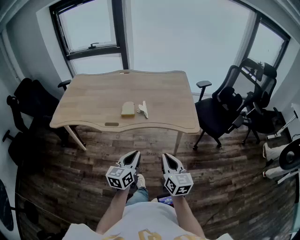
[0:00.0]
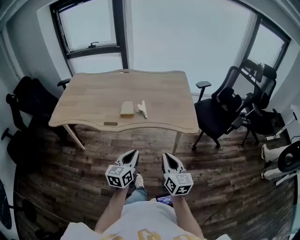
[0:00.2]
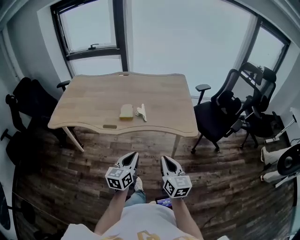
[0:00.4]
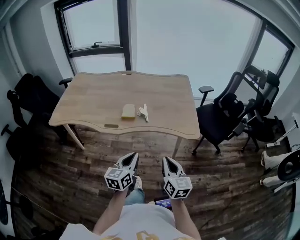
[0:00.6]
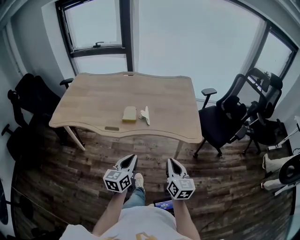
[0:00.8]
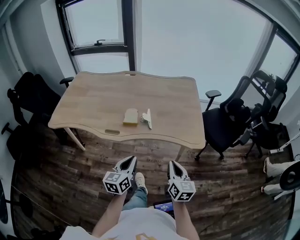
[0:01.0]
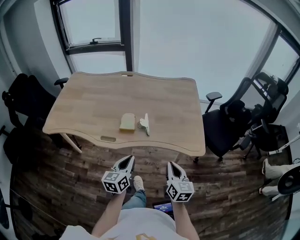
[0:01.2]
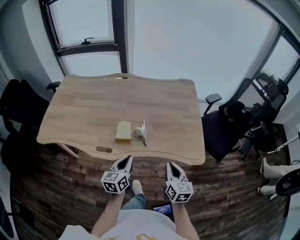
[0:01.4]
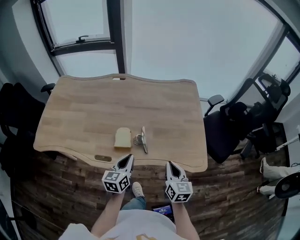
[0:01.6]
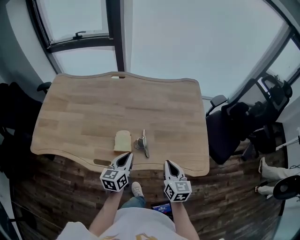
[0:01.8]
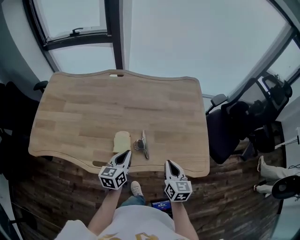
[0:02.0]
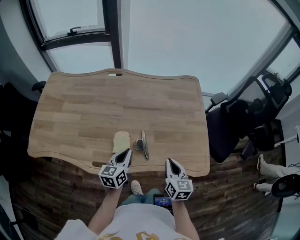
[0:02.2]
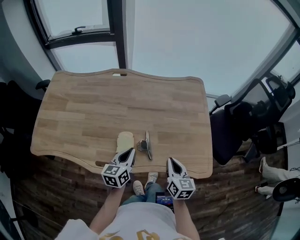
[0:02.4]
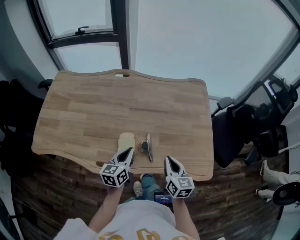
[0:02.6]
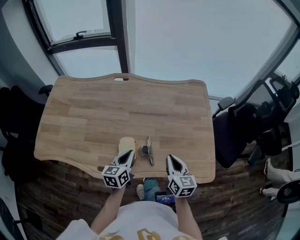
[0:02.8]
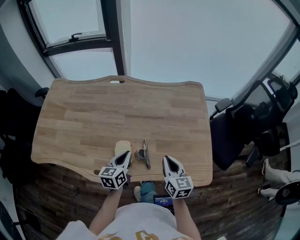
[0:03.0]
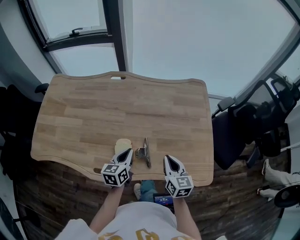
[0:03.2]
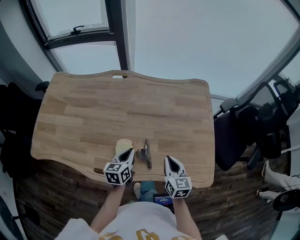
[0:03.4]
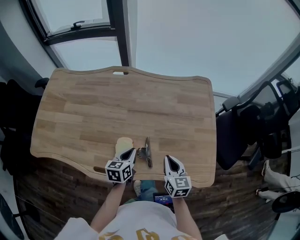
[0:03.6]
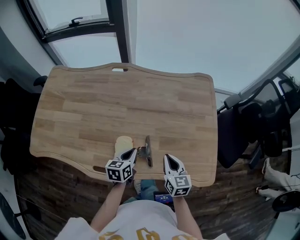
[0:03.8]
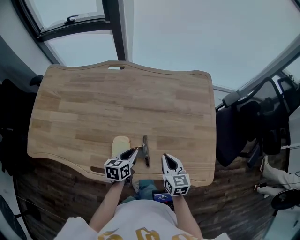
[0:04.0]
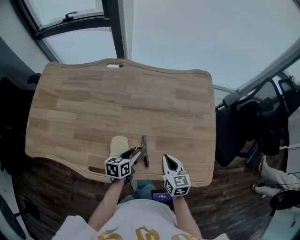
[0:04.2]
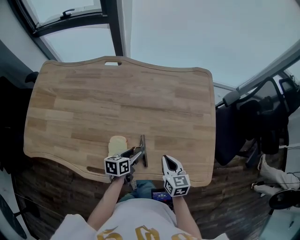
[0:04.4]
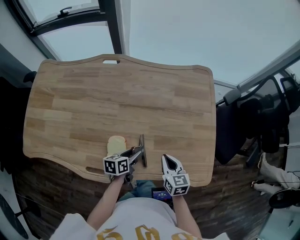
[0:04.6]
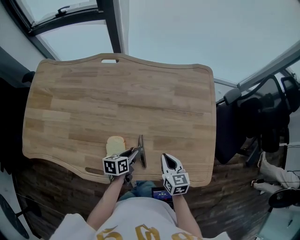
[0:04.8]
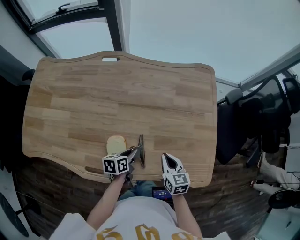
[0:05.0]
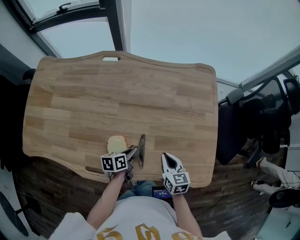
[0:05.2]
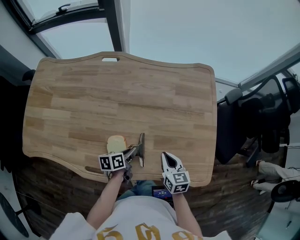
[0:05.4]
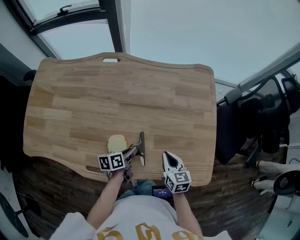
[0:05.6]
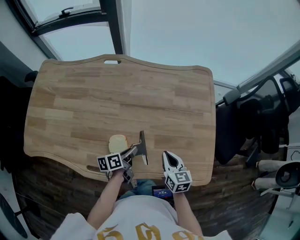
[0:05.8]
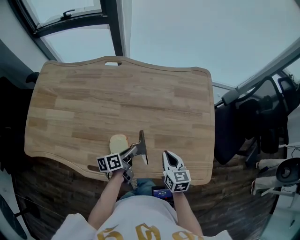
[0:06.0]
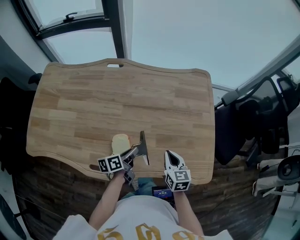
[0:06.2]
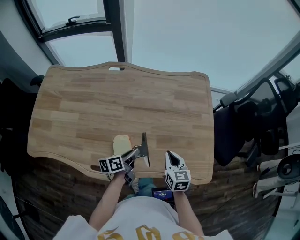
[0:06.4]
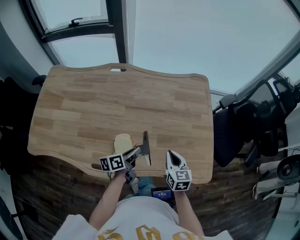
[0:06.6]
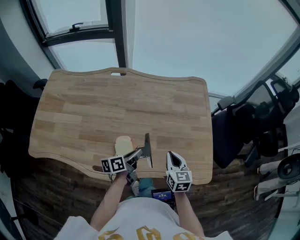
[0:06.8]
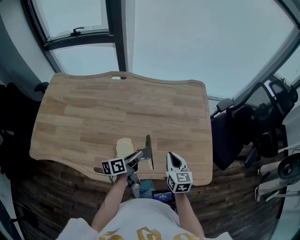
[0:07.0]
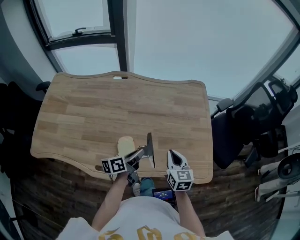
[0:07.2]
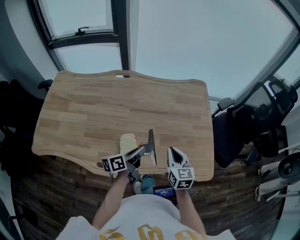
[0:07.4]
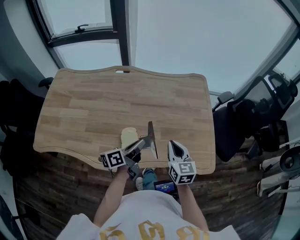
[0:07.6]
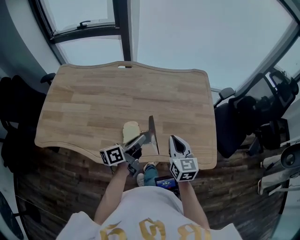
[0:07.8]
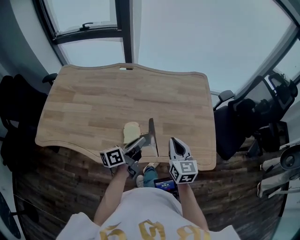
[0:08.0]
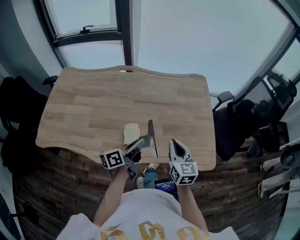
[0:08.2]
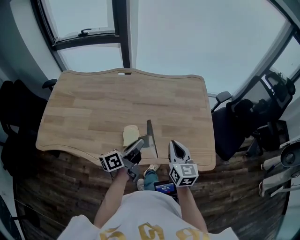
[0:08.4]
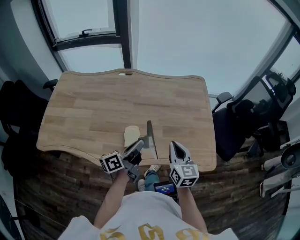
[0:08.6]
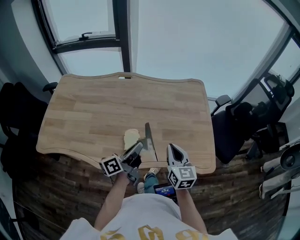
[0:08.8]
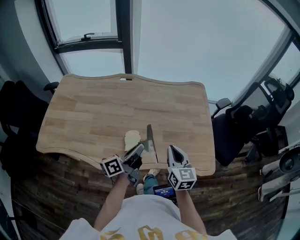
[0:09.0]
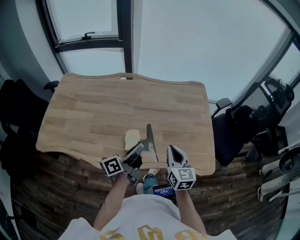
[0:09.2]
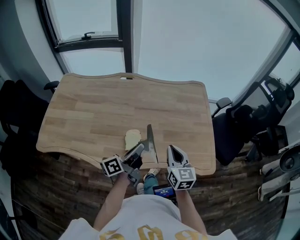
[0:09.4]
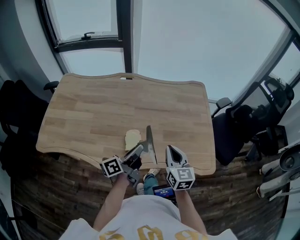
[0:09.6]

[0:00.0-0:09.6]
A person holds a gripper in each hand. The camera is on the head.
0.0 to 1.6 s: Both grippers move forward, about 30 cm.
1.6 to 3.2 s: The two grippers go about 15 cm forward.
3.2 to 4.8 s: The two grippers go roughly 10 cm downward. The left gripper changes its angle by roughly 30 degrees, and opens.
4.8 to 6.4 s: The left gripper goes roughly 5 cm upward, and changes its angle by approximately 20 degrees.
6.4 to 8.0 s: The grippers both shift upward and backward by roughly 15 cm. The left gripper changes its angle by roughly 20 degrees.
8.0 to 9.6 s: The grippers move only a little.

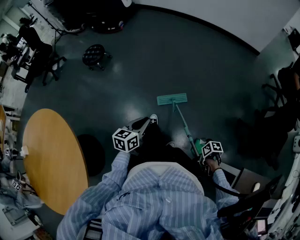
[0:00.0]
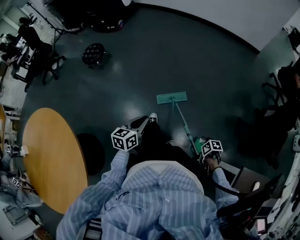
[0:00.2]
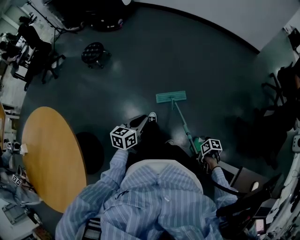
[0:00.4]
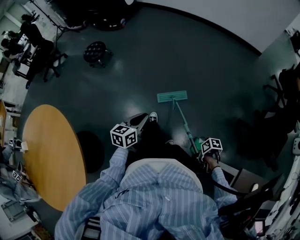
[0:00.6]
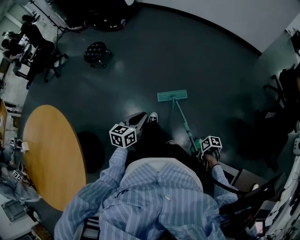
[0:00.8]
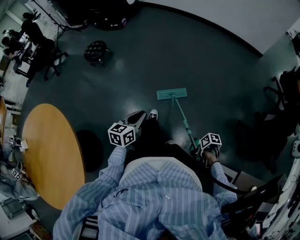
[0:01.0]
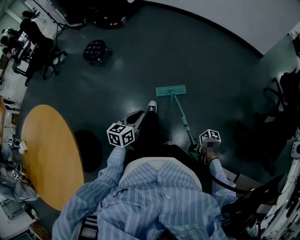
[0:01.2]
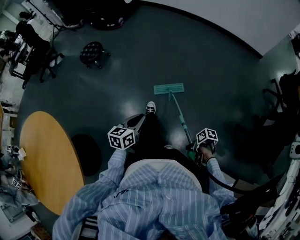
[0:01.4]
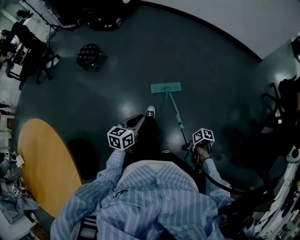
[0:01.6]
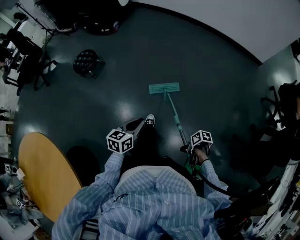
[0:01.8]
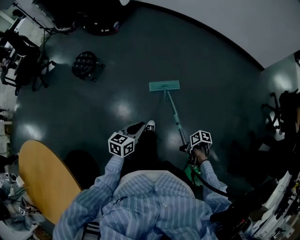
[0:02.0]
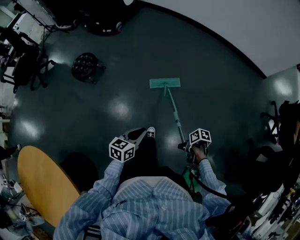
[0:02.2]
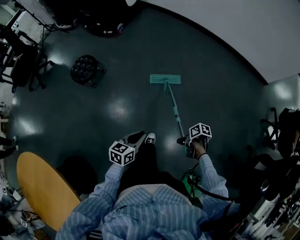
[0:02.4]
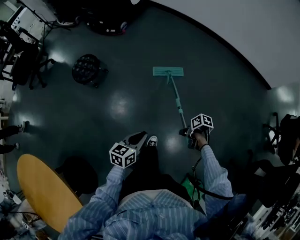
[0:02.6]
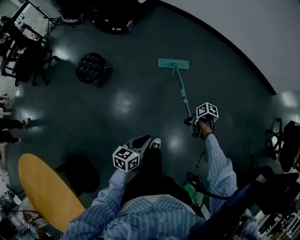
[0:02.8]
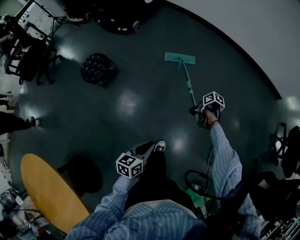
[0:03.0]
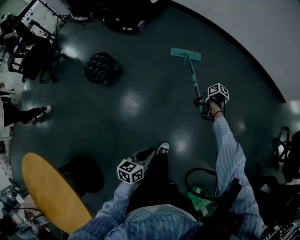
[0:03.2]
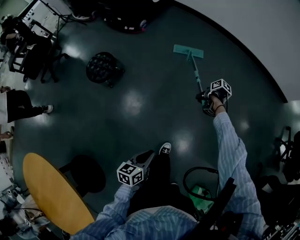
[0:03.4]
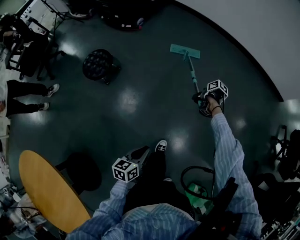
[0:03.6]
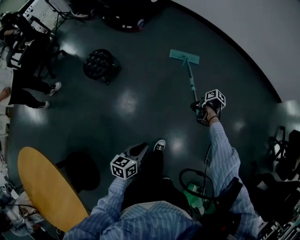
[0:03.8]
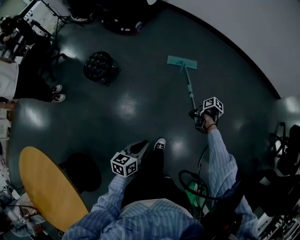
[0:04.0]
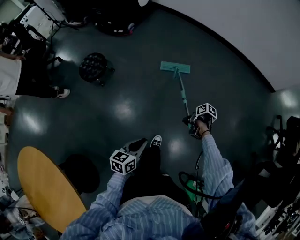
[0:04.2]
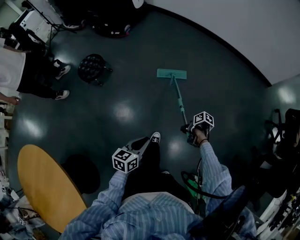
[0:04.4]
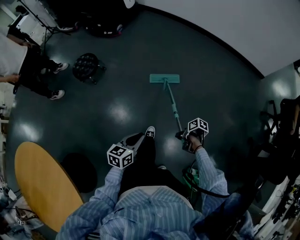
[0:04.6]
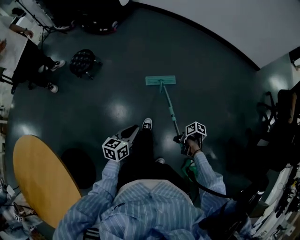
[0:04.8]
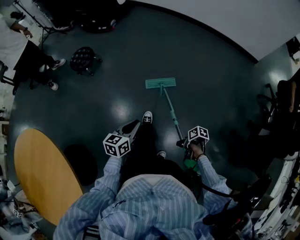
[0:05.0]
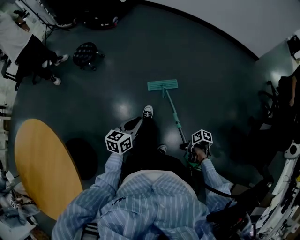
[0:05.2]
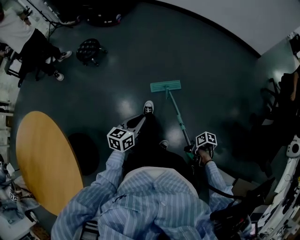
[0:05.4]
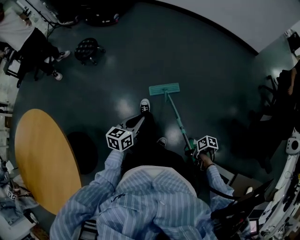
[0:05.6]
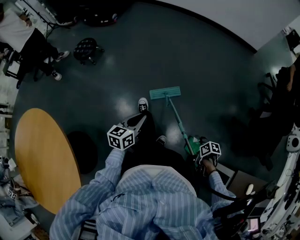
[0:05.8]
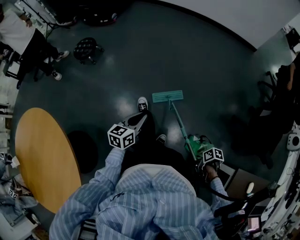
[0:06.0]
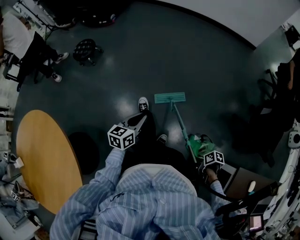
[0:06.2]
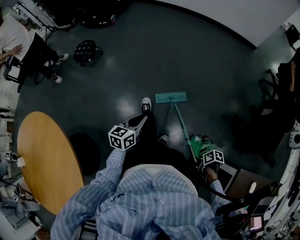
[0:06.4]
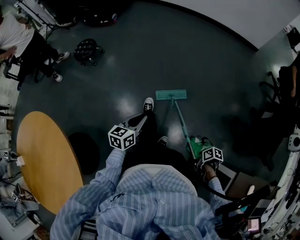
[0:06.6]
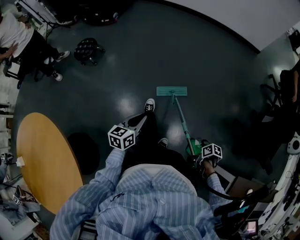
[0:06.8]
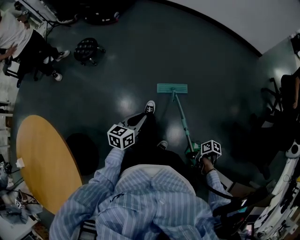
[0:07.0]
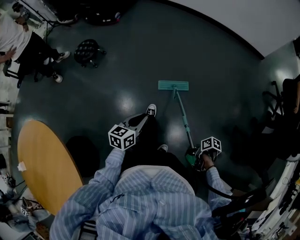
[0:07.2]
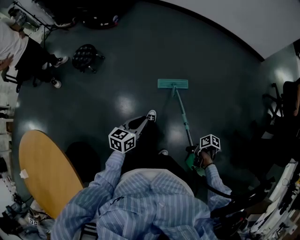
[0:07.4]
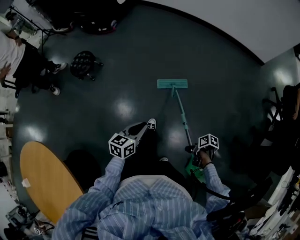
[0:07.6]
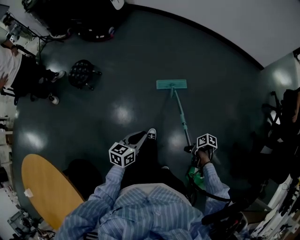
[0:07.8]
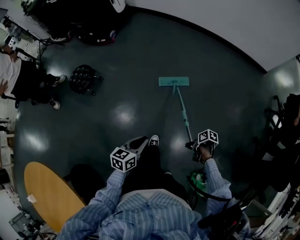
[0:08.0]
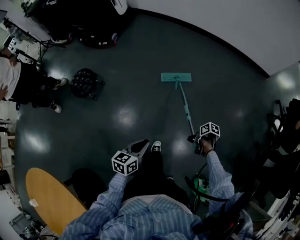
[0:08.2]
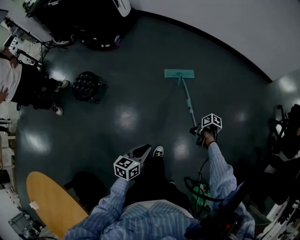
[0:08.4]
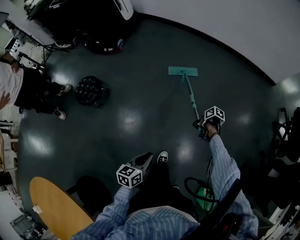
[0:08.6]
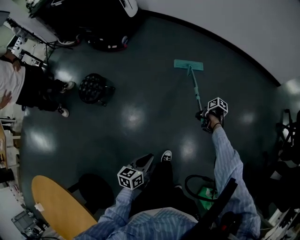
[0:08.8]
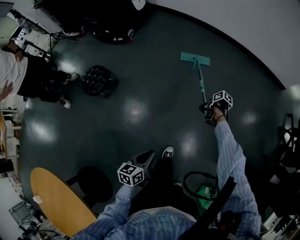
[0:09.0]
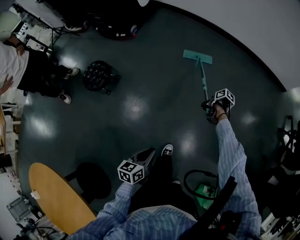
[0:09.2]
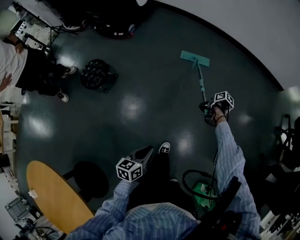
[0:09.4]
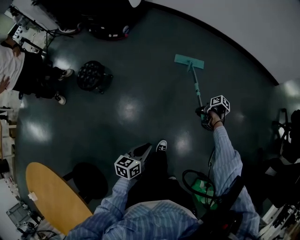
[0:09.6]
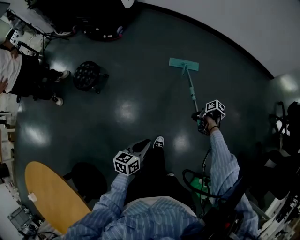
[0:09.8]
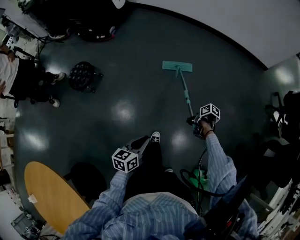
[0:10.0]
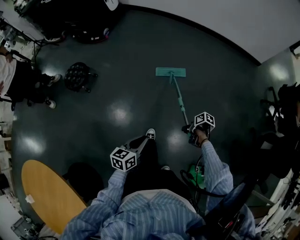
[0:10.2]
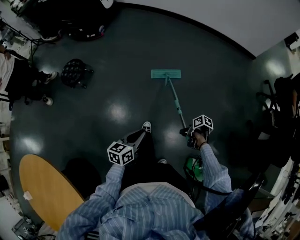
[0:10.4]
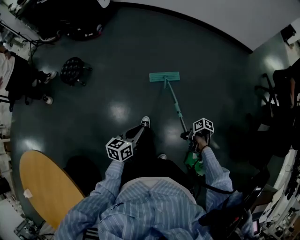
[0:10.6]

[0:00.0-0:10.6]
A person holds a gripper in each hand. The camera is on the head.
0.0 to 1.6 s: The left gripper changes place by roughly 15 cm.
1.6 to 3.0 s: The left gripper changes place by some 35 cm.
3.0 to 4.6 s: The left gripper ends up roughly 20 cm from where it was.
4.6 to 6.0 s: The left gripper moves approximately 25 cm.
6.0 to 7.6 s: The left gripper changes place by some 25 cm.
7.6 to 9.0 s: The left gripper moves about 20 cm.
9.0 to 10.6 s: The left gripper moves some 25 cm.

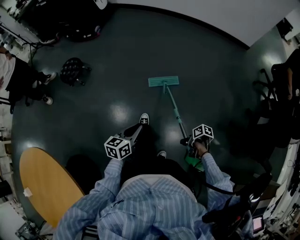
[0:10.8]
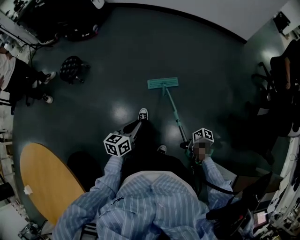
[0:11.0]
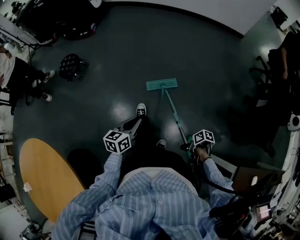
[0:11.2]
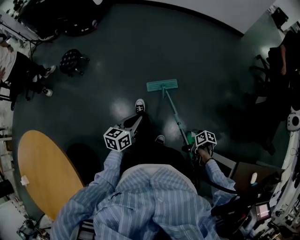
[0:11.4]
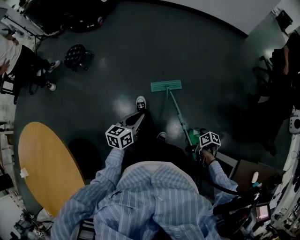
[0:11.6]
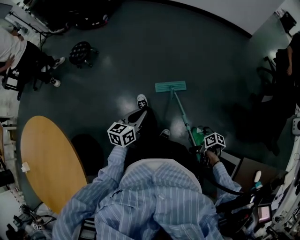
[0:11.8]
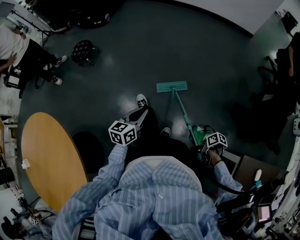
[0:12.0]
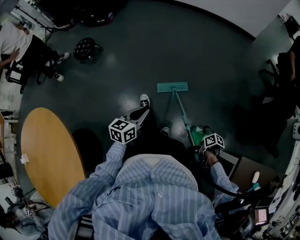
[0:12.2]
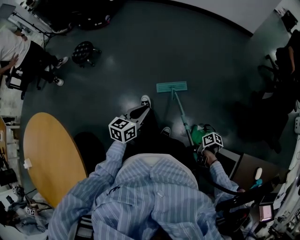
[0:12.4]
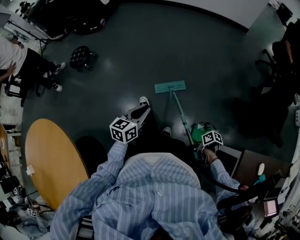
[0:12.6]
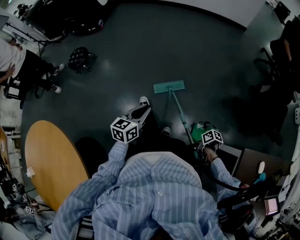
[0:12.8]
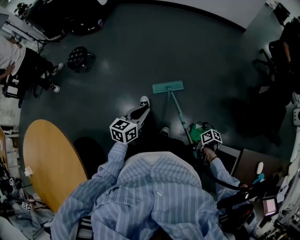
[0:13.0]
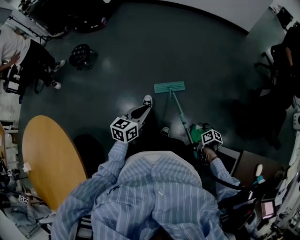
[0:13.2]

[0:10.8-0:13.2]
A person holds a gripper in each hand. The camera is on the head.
10.8 to 12.0 s: The left gripper ends up about 20 cm from where it was.

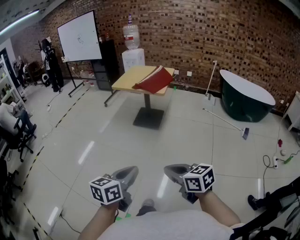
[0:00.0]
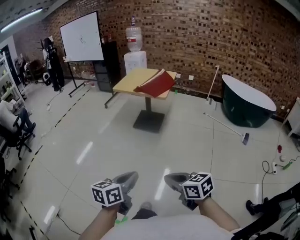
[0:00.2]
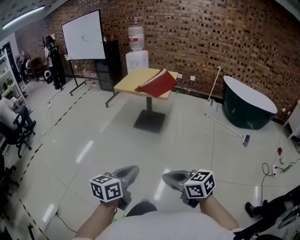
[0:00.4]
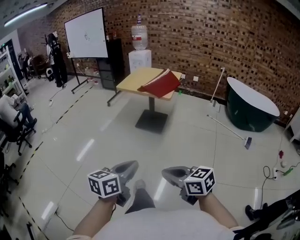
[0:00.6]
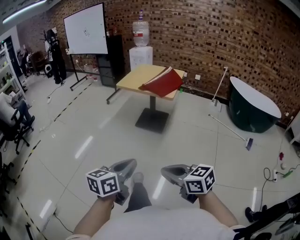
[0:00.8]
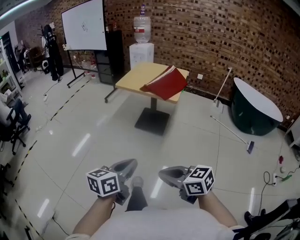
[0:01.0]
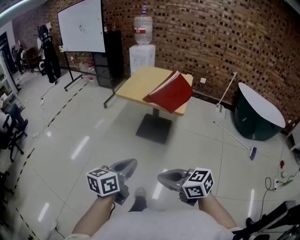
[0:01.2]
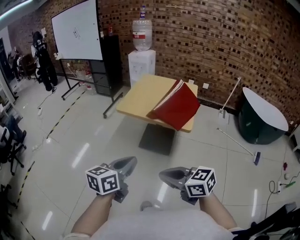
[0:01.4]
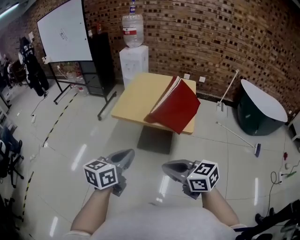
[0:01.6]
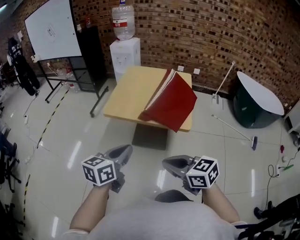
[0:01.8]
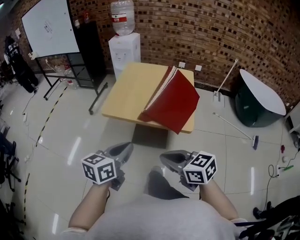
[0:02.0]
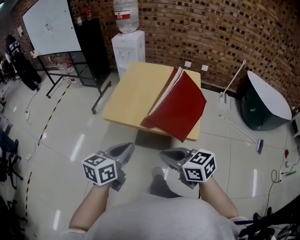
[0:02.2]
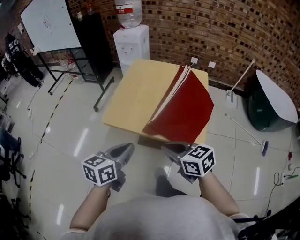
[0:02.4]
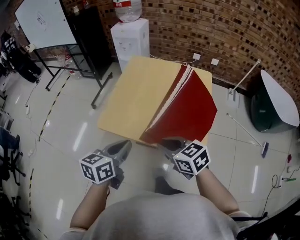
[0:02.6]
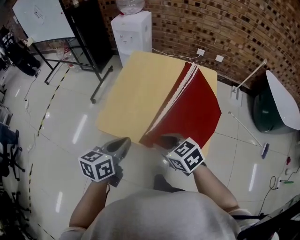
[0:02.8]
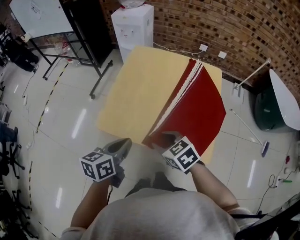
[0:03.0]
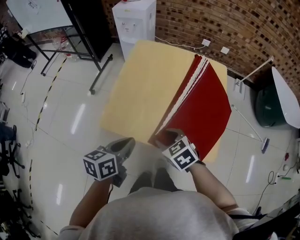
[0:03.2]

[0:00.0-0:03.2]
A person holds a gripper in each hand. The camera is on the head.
0.0 to 1.6 s: The two grippers travel together, forward, about 60 cm.
1.6 to 3.2 s: Both grippers move forward and downward, some 40 cm. The right gripper tips its fingers downward by about 30 degrees, and opens.
